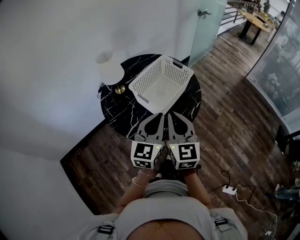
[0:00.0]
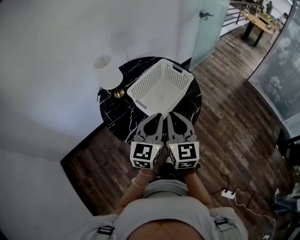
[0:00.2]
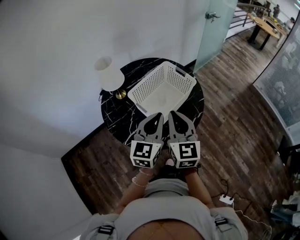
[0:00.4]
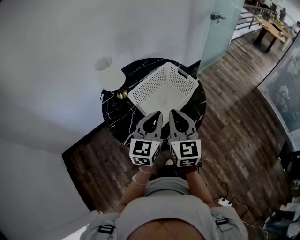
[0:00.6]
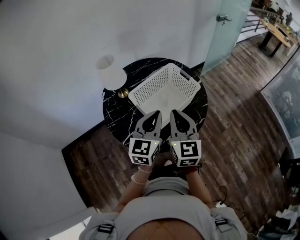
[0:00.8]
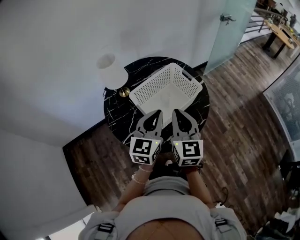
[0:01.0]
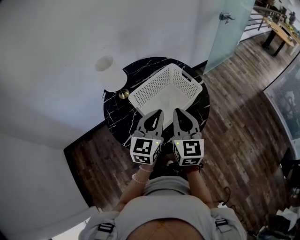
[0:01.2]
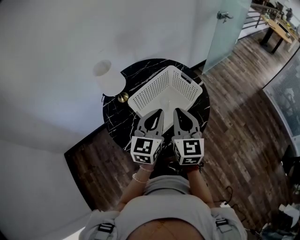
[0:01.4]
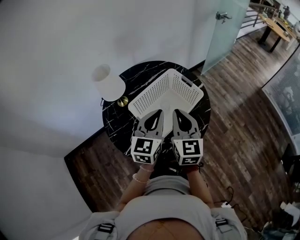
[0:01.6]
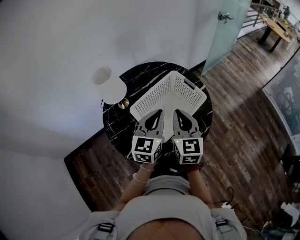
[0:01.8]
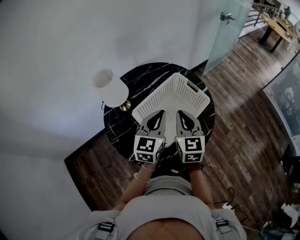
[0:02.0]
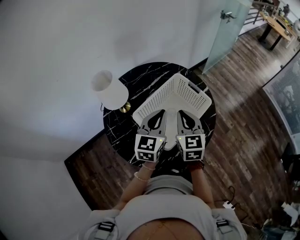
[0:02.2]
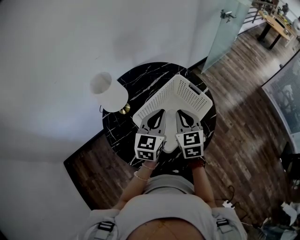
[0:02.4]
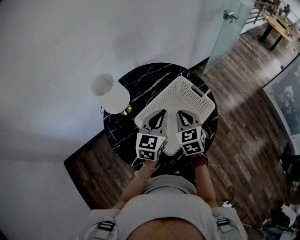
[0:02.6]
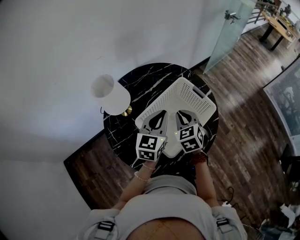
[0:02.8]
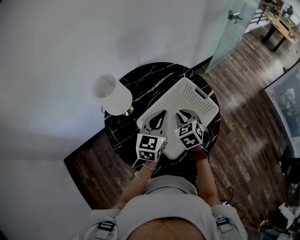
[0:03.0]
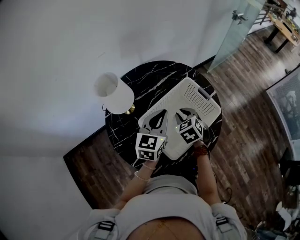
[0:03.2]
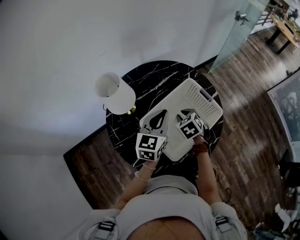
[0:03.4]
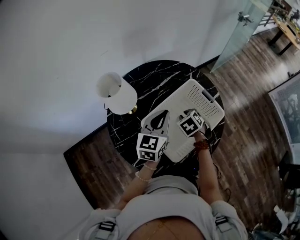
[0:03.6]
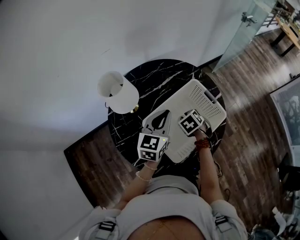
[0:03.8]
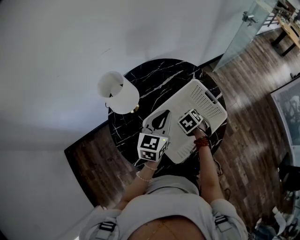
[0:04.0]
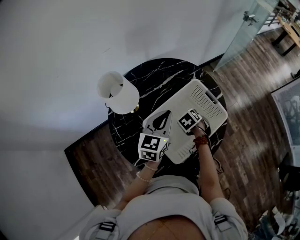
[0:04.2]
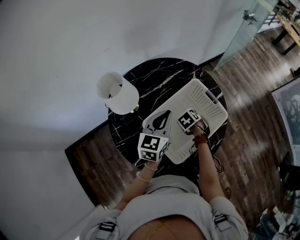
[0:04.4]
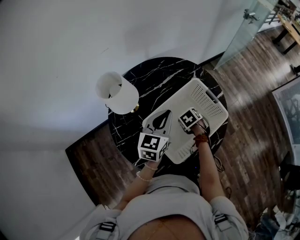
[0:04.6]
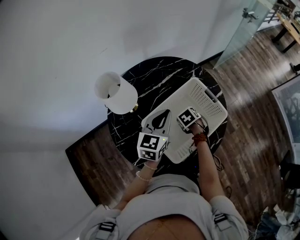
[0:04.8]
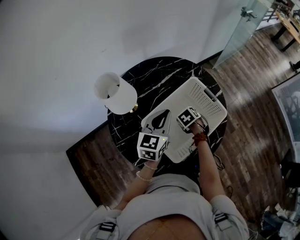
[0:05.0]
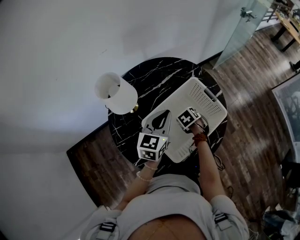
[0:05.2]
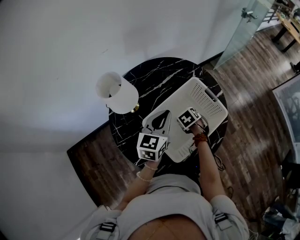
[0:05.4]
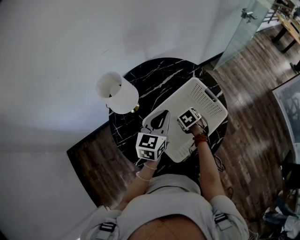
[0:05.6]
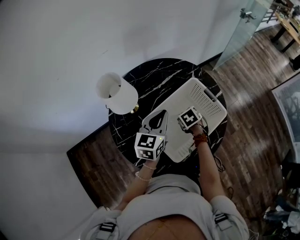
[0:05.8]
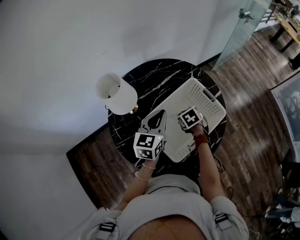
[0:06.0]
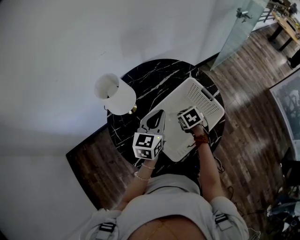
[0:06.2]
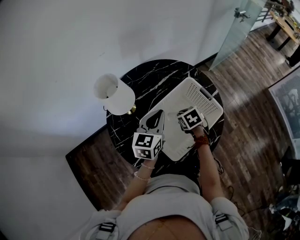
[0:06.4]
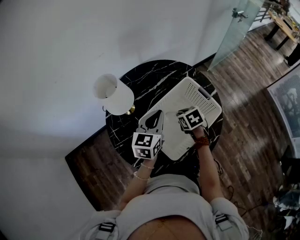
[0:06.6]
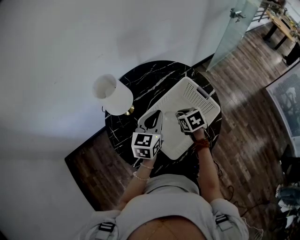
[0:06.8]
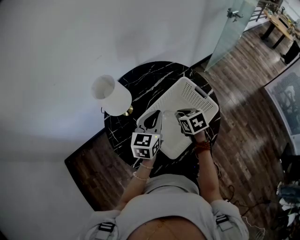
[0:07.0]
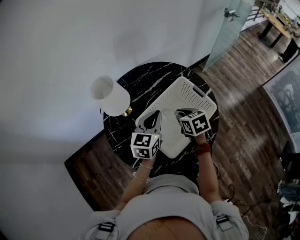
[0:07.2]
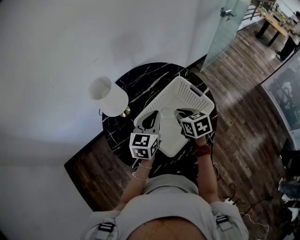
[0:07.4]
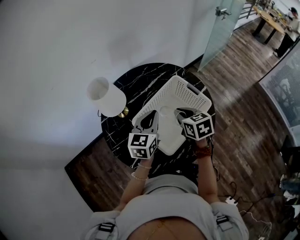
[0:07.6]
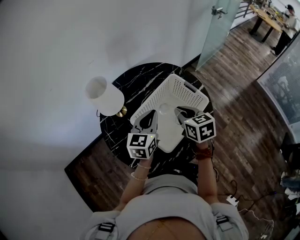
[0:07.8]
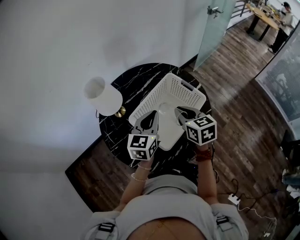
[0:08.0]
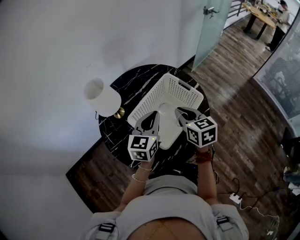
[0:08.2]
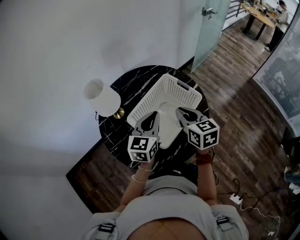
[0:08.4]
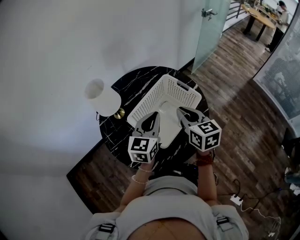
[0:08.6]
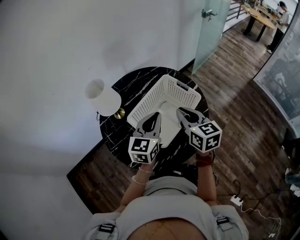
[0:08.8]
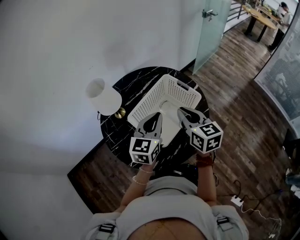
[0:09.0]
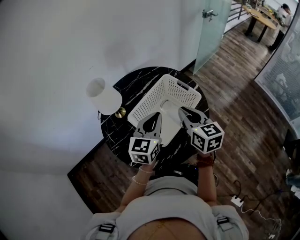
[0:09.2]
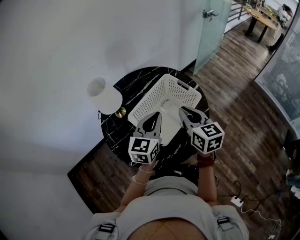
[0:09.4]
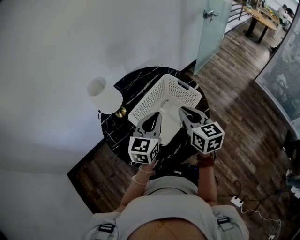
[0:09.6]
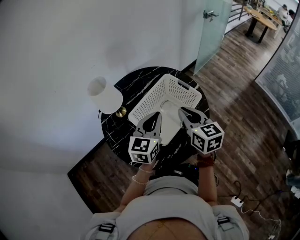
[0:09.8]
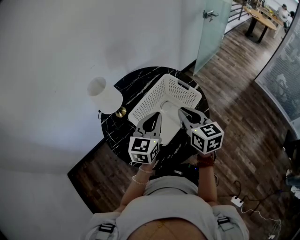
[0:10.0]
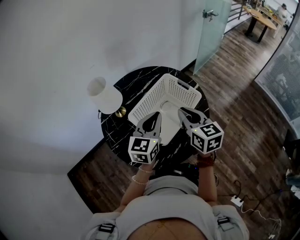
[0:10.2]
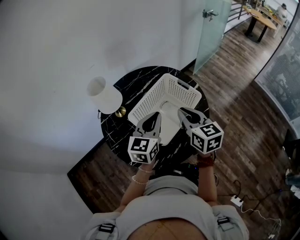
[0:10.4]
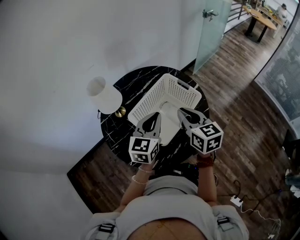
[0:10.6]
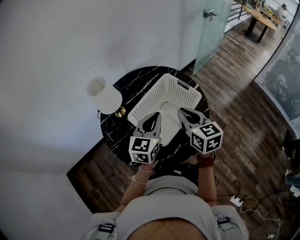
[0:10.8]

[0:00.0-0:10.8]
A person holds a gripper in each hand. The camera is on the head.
0:00.0 to 0:01.6: Both grippers move forward, about 20 cm.
0:01.6 to 0:03.0: The left gripper moves forward, downward and to the left, about 15 cm. The right gripper goes approximately 20 cm downward, forward and to the left, and tilts its fingers roughly 40 degrees downward.
0:03.0 to 0:04.6: The right gripper is displaced downward by some 15 cm, and tilts its fingers approximately 30 degrees downward.
0:04.6 to 0:06.2: The right gripper is displaced upward by some 5 cm.
0:06.2 to 0:07.8: The left gripper shifts by about 5 cm; the right gripper shifts about 15 cm upward and backward, and points its fingers roughly 30 degrees further upward.
0:07.8 to 0:09.2: The left gripper goes some 5 cm backward. Meanwhile the right gripper travels upward and backward by approximately 10 cm.
0:09.2 to 0:10.8: The two grippers keep their place.

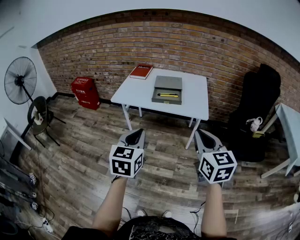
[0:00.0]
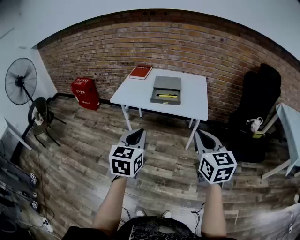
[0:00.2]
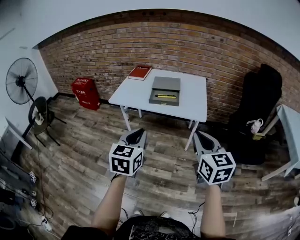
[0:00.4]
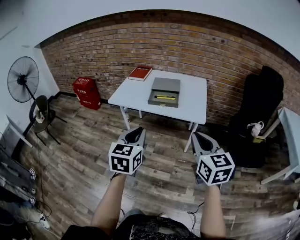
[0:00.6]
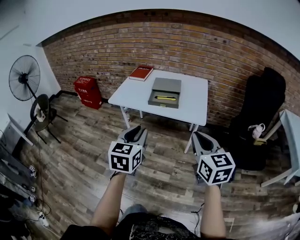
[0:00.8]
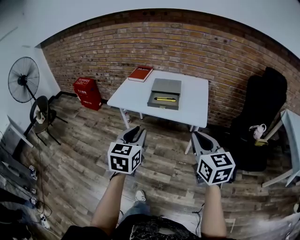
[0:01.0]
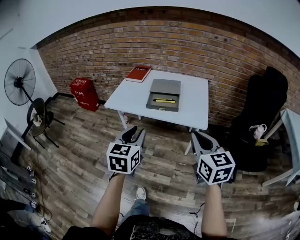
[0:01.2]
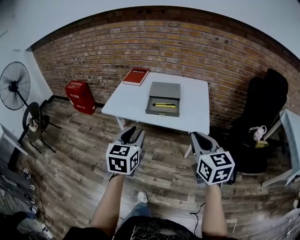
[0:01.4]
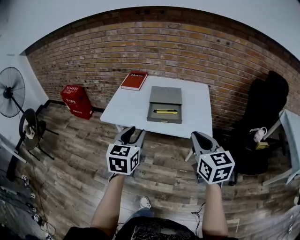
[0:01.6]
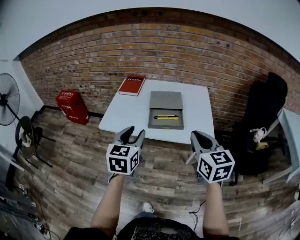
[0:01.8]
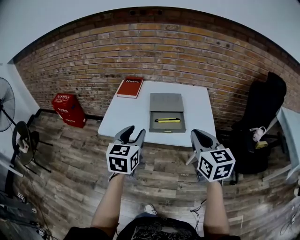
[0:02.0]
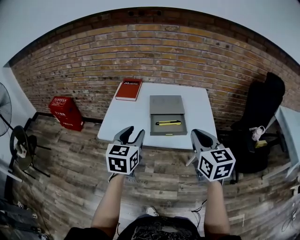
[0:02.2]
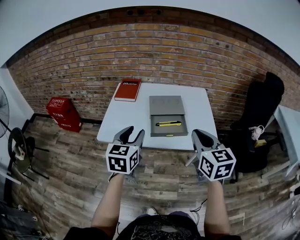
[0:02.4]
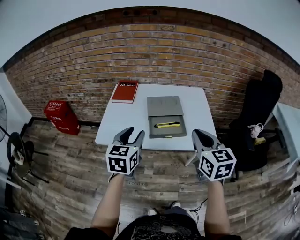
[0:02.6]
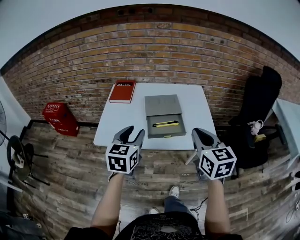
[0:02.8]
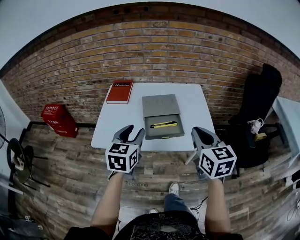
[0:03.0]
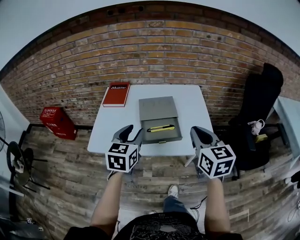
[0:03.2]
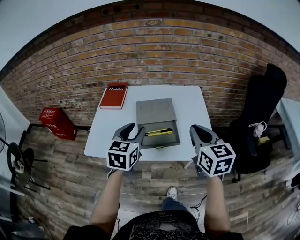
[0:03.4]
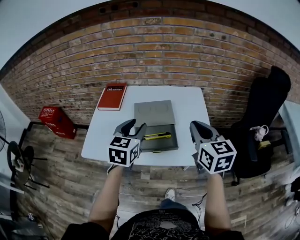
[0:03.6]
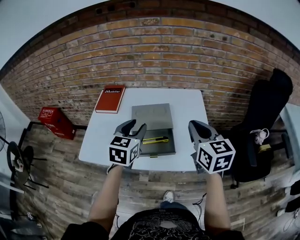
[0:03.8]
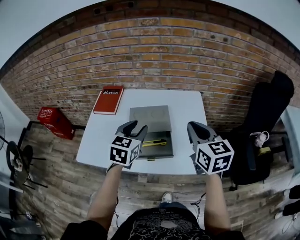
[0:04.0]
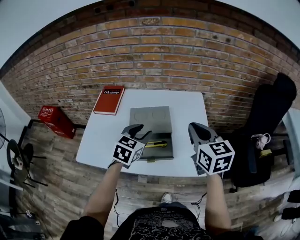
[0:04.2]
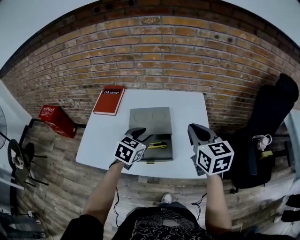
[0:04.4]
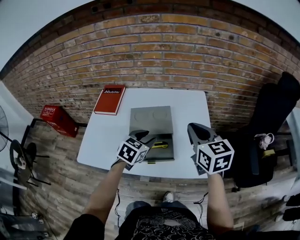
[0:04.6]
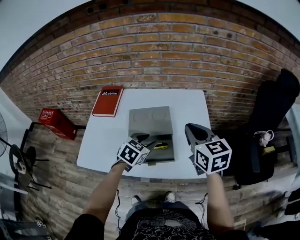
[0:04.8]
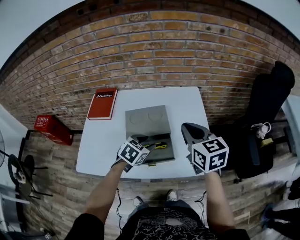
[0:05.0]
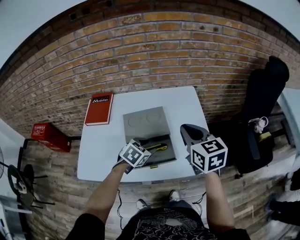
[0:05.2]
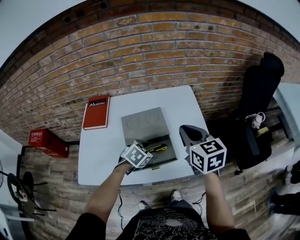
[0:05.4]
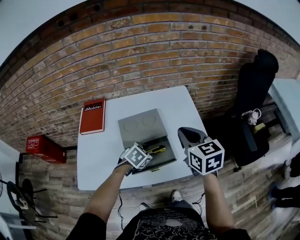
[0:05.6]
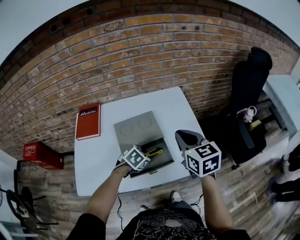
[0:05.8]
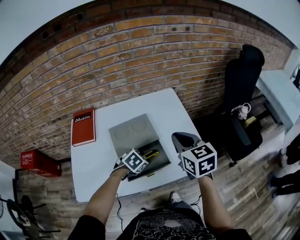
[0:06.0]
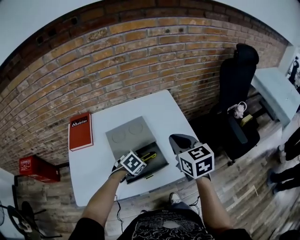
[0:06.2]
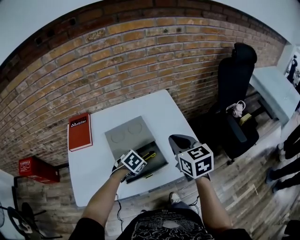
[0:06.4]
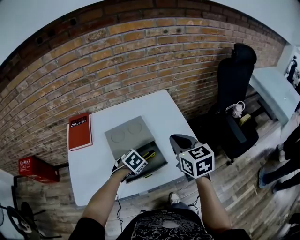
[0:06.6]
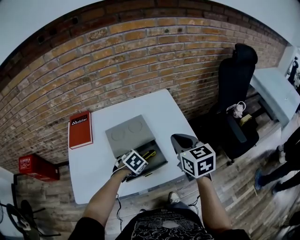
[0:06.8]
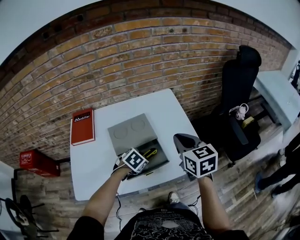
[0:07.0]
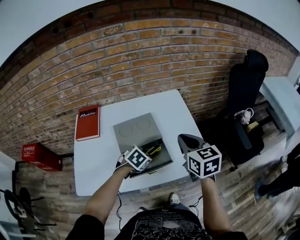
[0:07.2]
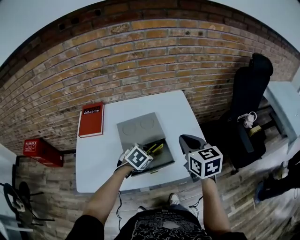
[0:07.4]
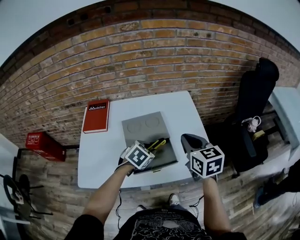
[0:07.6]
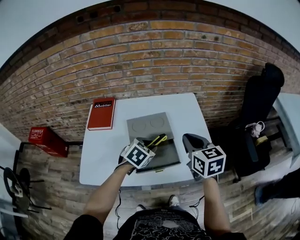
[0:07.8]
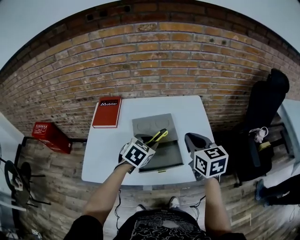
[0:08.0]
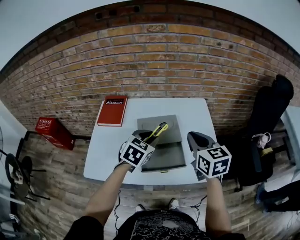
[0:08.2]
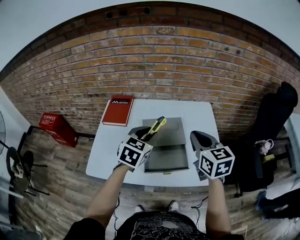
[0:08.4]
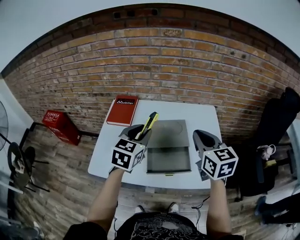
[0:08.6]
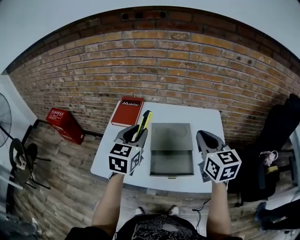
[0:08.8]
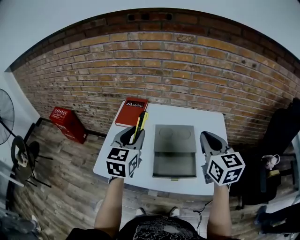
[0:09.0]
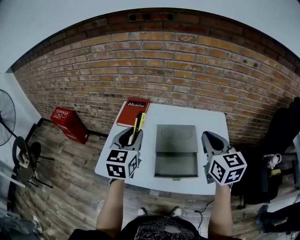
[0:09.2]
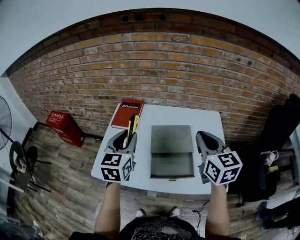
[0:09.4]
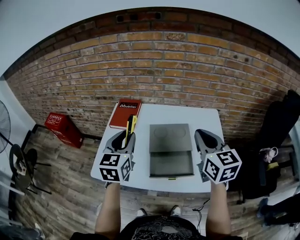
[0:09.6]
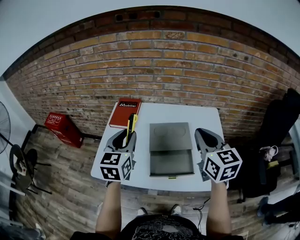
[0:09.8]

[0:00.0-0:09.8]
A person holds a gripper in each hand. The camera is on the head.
0:00.0 to 0:01.4: Both grippers move forward, roughly 15 cm. The left gripper opens.
0:01.4 to 0:02.8: The right gripper goes roughly 20 cm forward and to the left, while the left gripper heads forward, covering some 20 cm.
0:02.8 to 0:04.2: The right gripper is displaced forward and to the right by about 20 cm; the left gripper is displaced forward, to the right and downward by some 25 cm.
0:04.2 to 0:05.6: The left gripper heads downward, covering approximately 15 cm, and swivels some 40 degrees, while the right gripper moves about 5 cm.
0:05.6 to 0:07.0: There are only small adjustments of the grippers.
0:07.0 to 0:08.4: The left gripper goes some 20 cm upward, and angles its fingers upward, by about 30 degrees. Meanwhile the right gripper changes place by roughly 10 cm.
0:08.4 to 0:09.8: The left gripper goes roughly 15 cm to the left and upward, and turns by about 30 degrees. Meanwhile the right gripper changes place by approximately 5 cm.

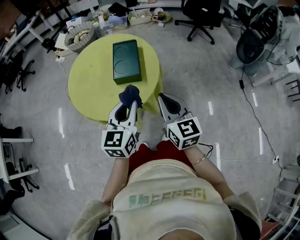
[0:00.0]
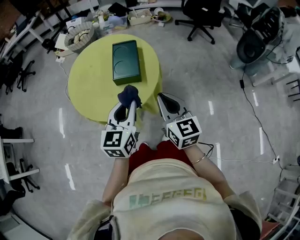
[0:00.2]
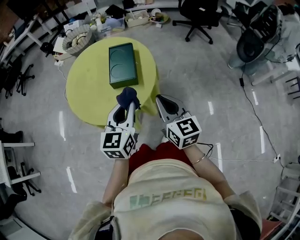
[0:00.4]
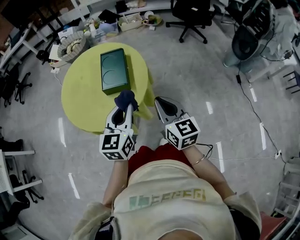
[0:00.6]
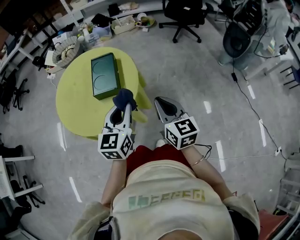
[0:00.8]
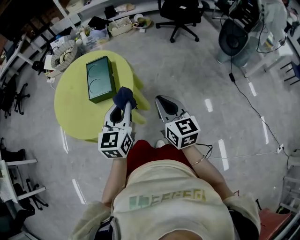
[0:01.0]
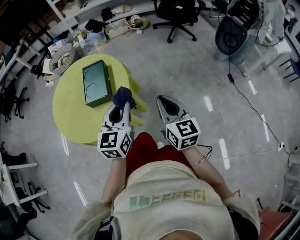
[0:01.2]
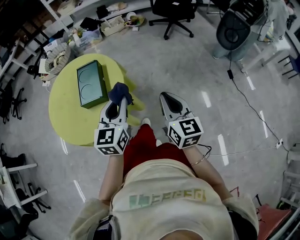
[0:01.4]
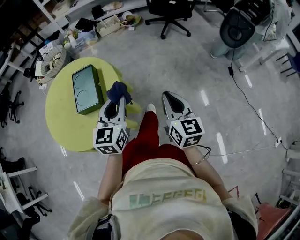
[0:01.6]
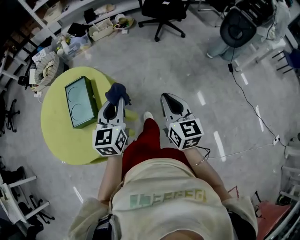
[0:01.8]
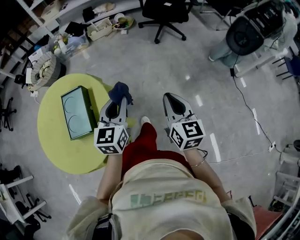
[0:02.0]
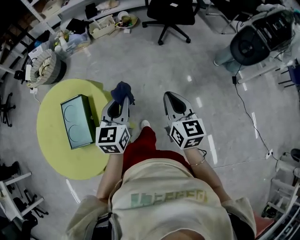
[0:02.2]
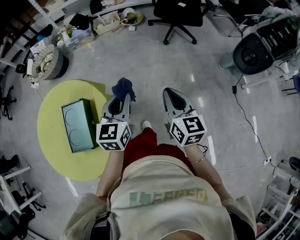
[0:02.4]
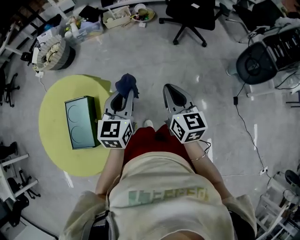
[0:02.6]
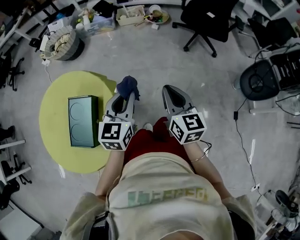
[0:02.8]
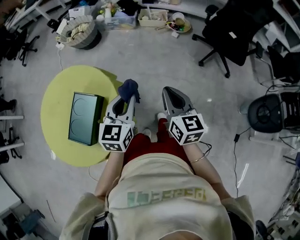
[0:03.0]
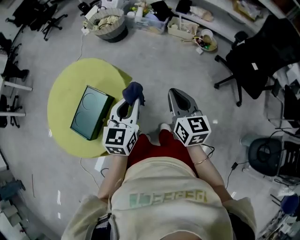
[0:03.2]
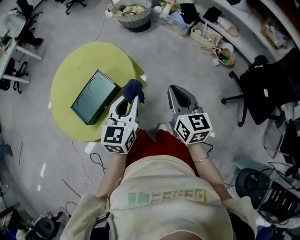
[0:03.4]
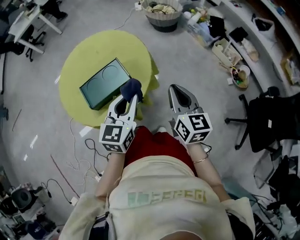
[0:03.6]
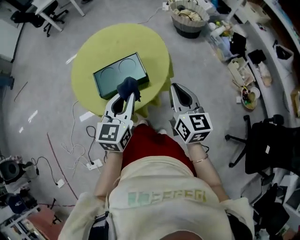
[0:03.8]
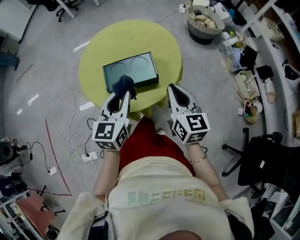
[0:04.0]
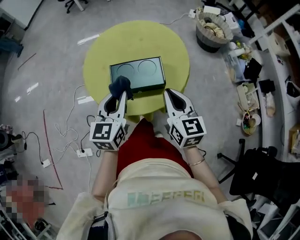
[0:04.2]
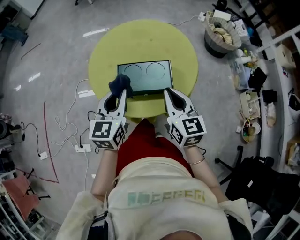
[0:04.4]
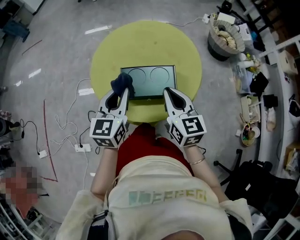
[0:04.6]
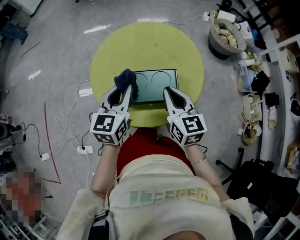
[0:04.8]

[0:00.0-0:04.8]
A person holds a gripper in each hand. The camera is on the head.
0:00.0 to 0:01.6: Both grippers move to the right and forward, roughly 25 cm.
0:01.6 to 0:03.2: The two grippers travel together, about 50 cm. The left gripper changes its angle by some 30 degrees. Meanwhile the right gripper swivels roughly 40 degrees.
0:03.2 to 0:04.8: The right gripper changes place by some 40 cm, and changes its angle by roughly 60 degrees, while the left gripper changes place by about 35 cm, and changes its angle by roughly 60 degrees.